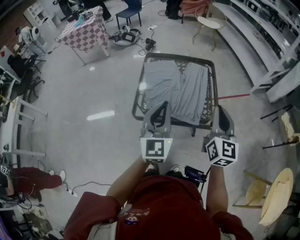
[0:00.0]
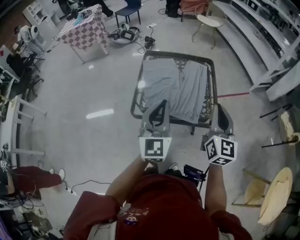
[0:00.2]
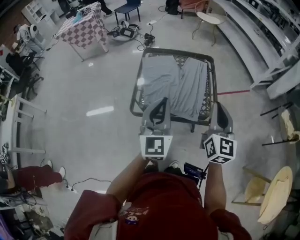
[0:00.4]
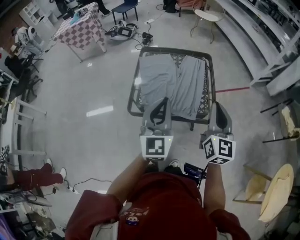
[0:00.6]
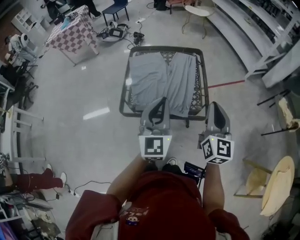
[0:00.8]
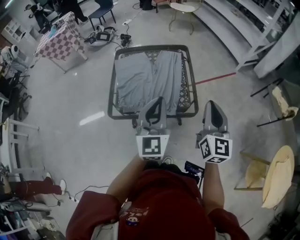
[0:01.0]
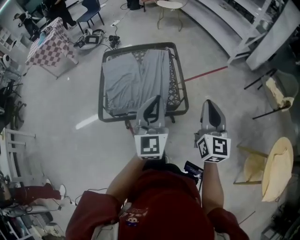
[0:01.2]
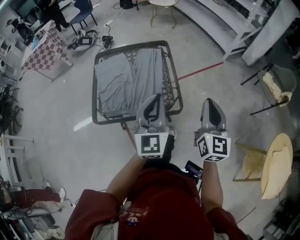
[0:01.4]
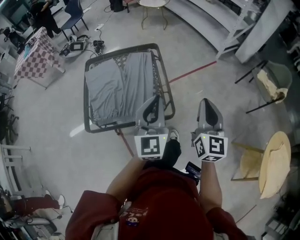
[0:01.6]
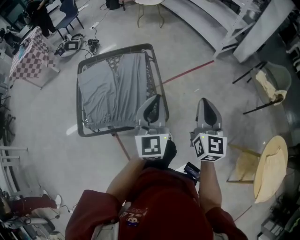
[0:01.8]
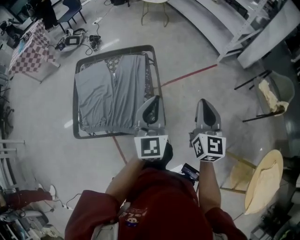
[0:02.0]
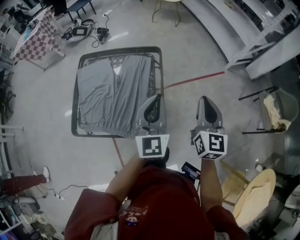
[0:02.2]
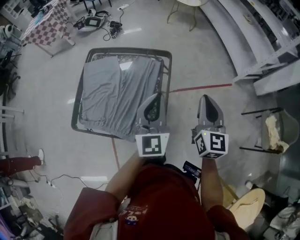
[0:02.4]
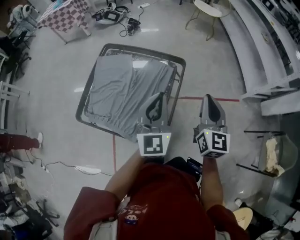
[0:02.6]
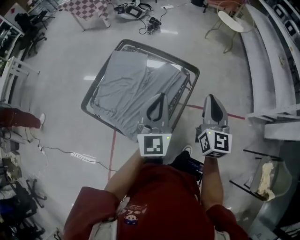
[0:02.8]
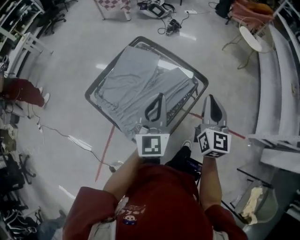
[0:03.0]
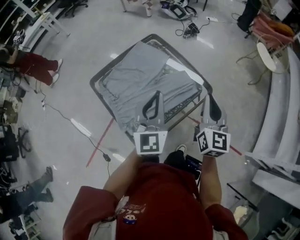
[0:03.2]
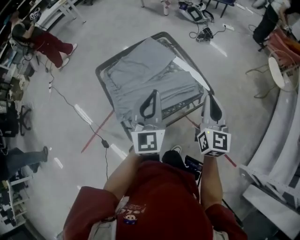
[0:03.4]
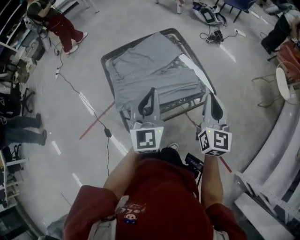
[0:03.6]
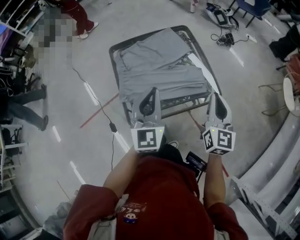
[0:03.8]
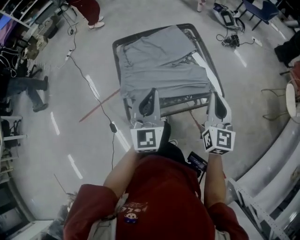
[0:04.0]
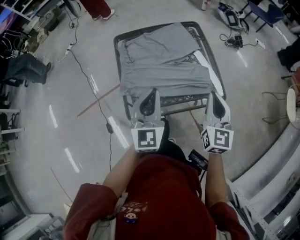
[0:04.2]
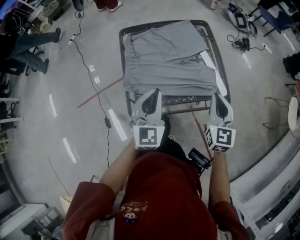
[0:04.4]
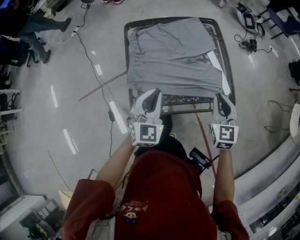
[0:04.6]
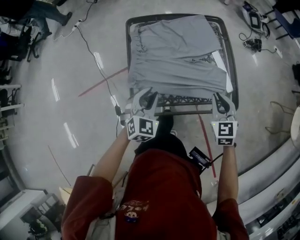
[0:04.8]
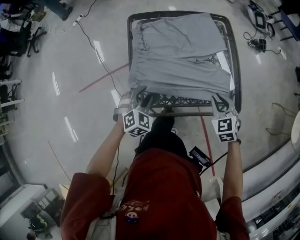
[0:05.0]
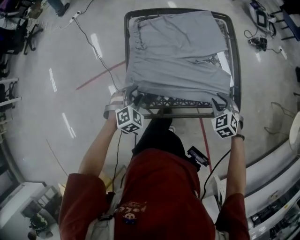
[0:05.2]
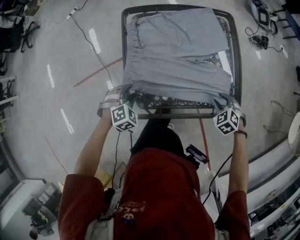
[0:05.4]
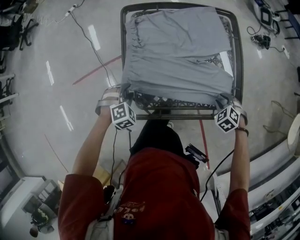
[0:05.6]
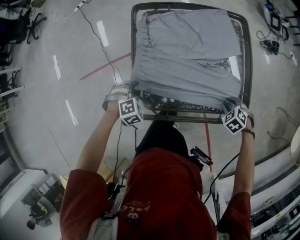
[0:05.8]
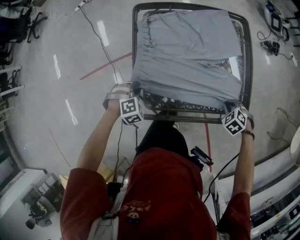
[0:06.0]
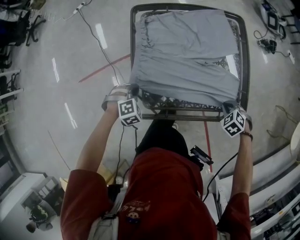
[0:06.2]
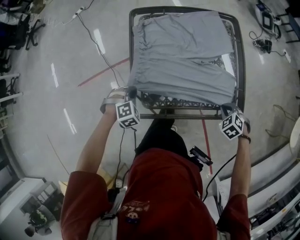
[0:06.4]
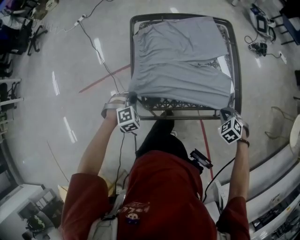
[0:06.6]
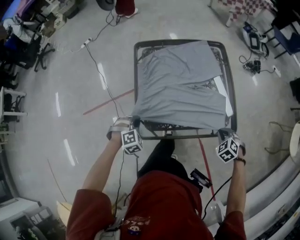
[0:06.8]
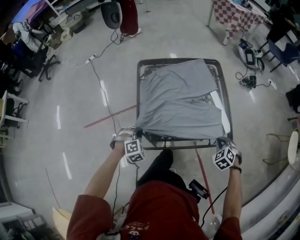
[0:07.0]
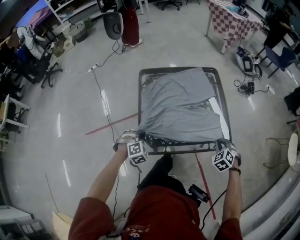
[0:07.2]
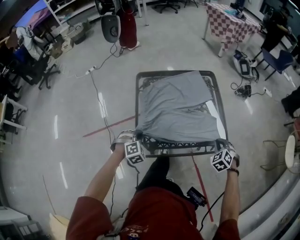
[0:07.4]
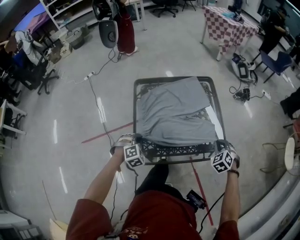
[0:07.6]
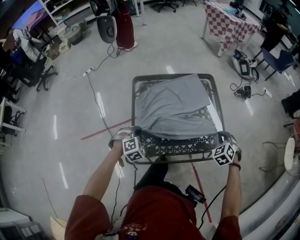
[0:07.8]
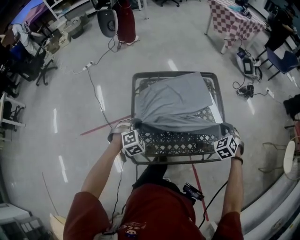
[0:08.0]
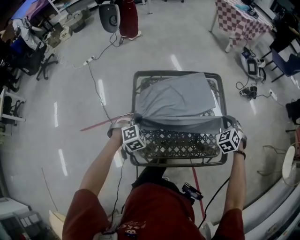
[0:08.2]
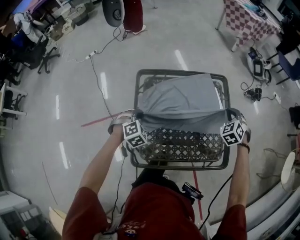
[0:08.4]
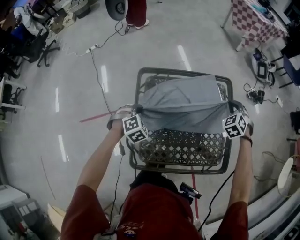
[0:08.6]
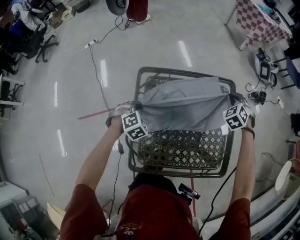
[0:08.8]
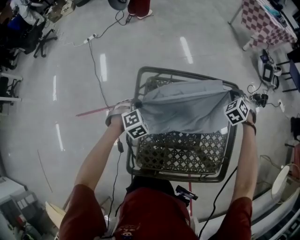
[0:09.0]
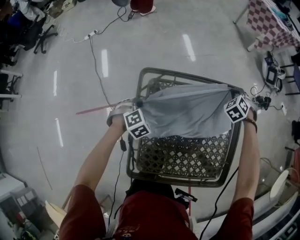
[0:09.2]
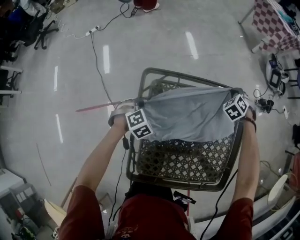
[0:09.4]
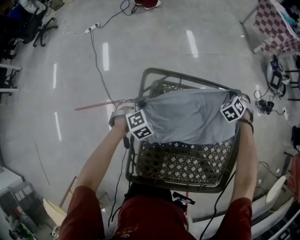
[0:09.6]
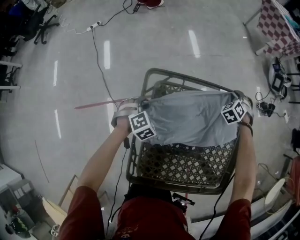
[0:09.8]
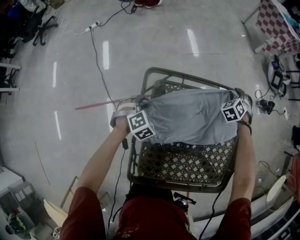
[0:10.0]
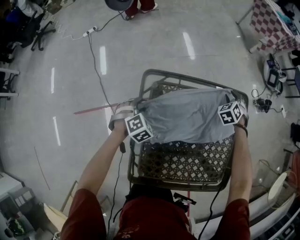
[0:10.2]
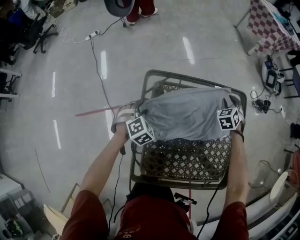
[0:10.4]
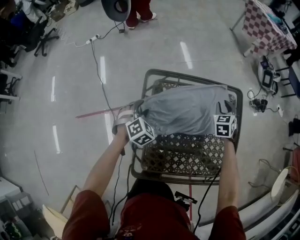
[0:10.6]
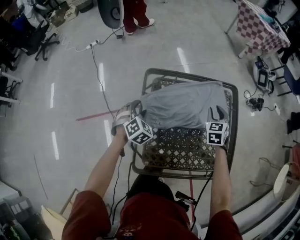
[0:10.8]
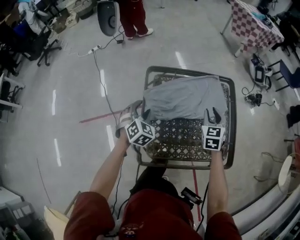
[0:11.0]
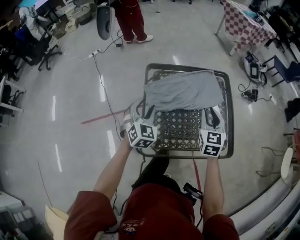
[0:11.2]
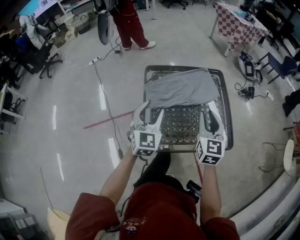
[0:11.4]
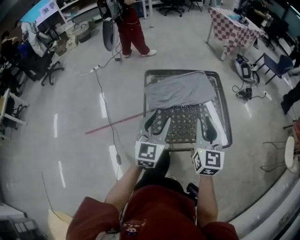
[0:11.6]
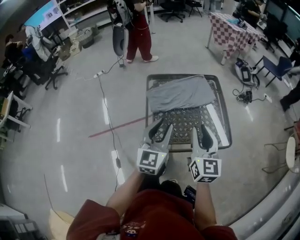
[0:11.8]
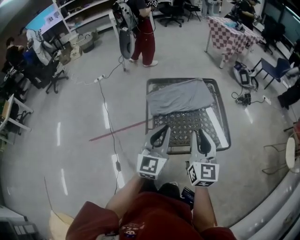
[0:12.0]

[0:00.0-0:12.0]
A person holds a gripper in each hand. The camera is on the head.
0:00.0 to 0:01.6: The two grippers go about 25 cm to the right.
0:01.6 to 0:03.0: The left gripper changes place by about 25 cm, and swivels some 50 degrees. The right gripper moves roughly 40 cm, and rotates some 50 degrees.
0:03.0 to 0:04.4: The grippers both shift downward by roughly 10 cm. The right gripper swivels some 50 degrees, while the left gripper rotates some 40 degrees.
0:04.4 to 0:06.0: The grippers both shift downward by approximately 30 cm. The right gripper tips its fingers downward by about 60 degrees, and opens, then closes again, while the left gripper angles its fingers downward, by some 60 degrees.
0:06.0 to 0:07.6: Both grippers travel together upward, approximately 10 cm. The right gripper rotates some 30 degrees.
0:07.6 to 0:09.0: The right gripper goes roughly 40 cm forward, while the left gripper moves forward, some 25 cm.
0:09.0 to 0:10.4: The right gripper moves downward, about 5 cm, and opens up. The left gripper opens up.
0:10.4 to 0:12.0: The grippers both shift backward and upward by about 60 cm. The left gripper tilts its fingers approximately 60 degrees upward, and closes up; the right gripper tilts its fingers approximately 50 degrees upward.

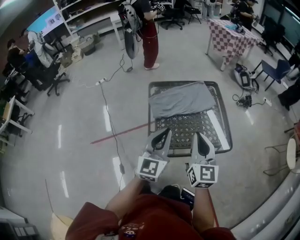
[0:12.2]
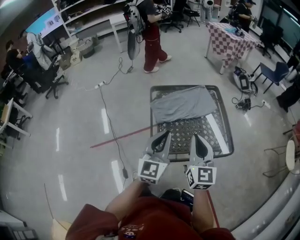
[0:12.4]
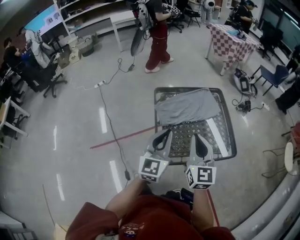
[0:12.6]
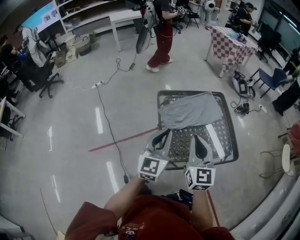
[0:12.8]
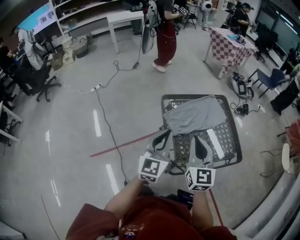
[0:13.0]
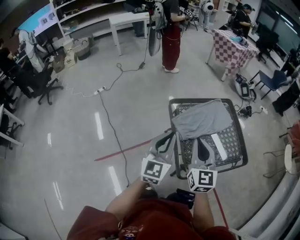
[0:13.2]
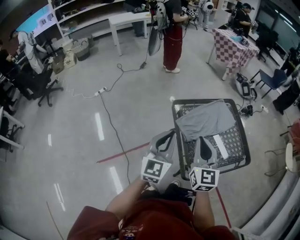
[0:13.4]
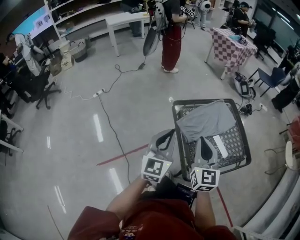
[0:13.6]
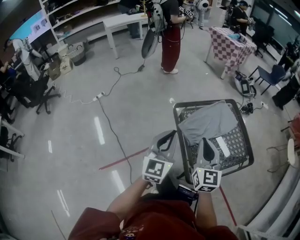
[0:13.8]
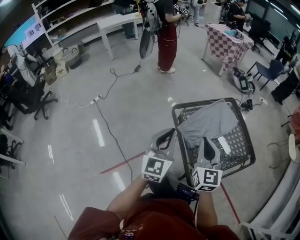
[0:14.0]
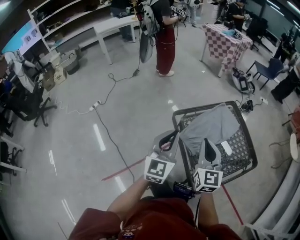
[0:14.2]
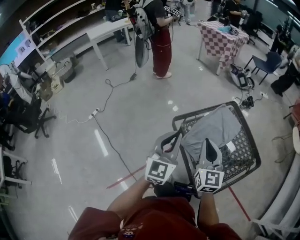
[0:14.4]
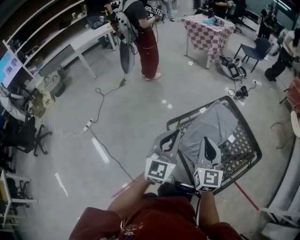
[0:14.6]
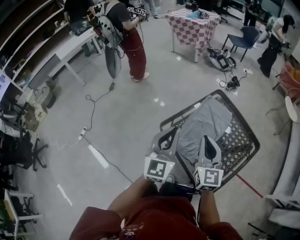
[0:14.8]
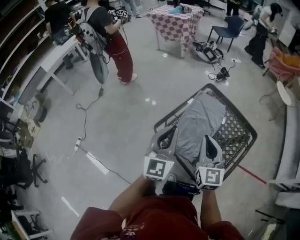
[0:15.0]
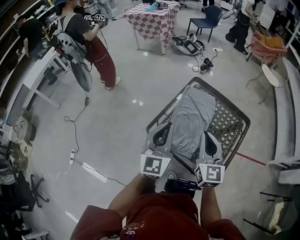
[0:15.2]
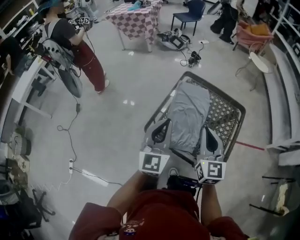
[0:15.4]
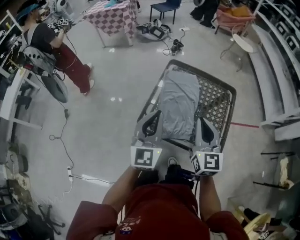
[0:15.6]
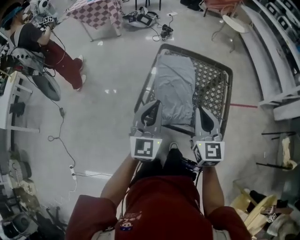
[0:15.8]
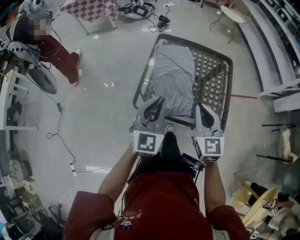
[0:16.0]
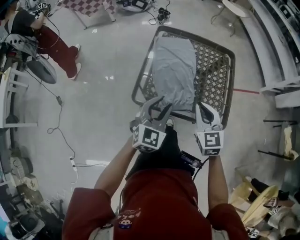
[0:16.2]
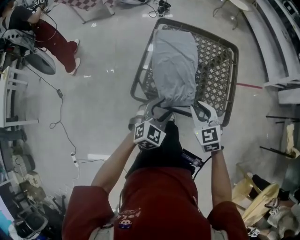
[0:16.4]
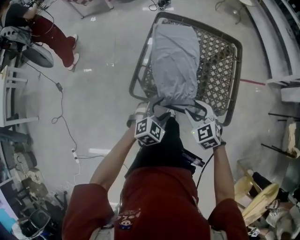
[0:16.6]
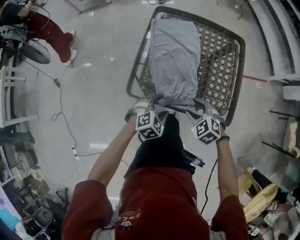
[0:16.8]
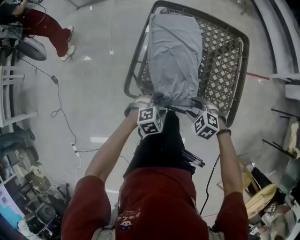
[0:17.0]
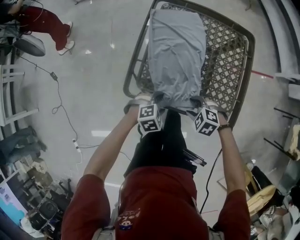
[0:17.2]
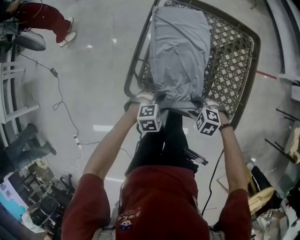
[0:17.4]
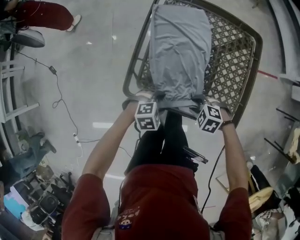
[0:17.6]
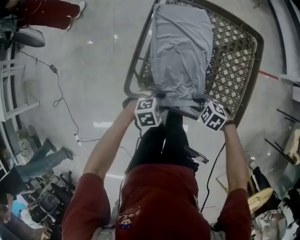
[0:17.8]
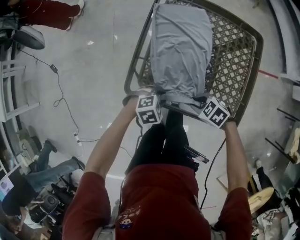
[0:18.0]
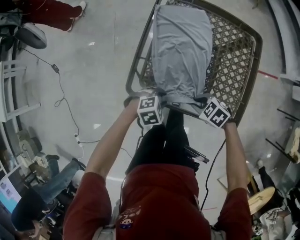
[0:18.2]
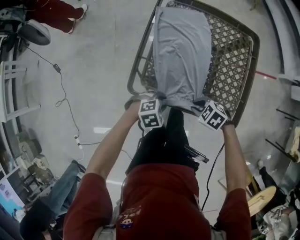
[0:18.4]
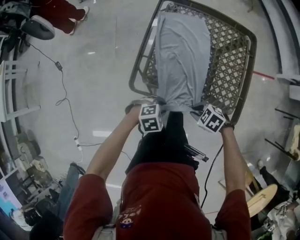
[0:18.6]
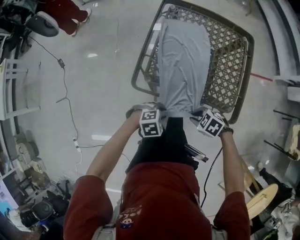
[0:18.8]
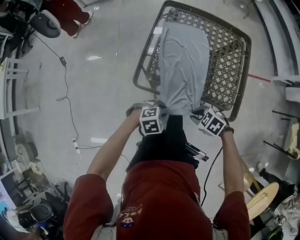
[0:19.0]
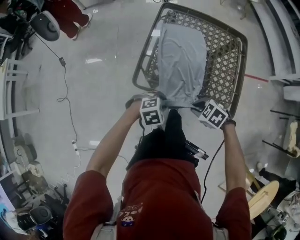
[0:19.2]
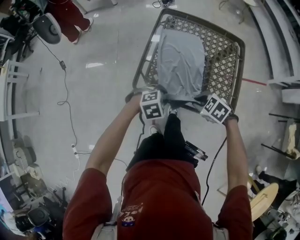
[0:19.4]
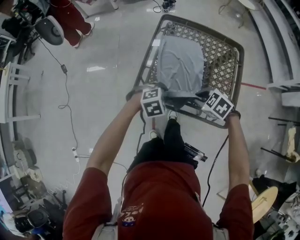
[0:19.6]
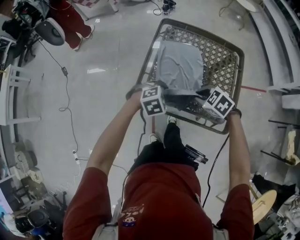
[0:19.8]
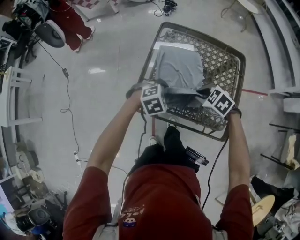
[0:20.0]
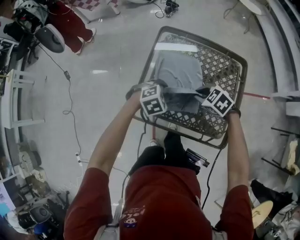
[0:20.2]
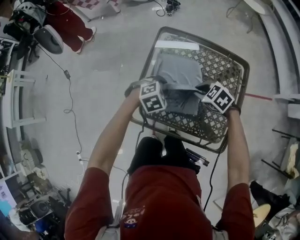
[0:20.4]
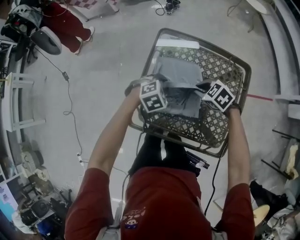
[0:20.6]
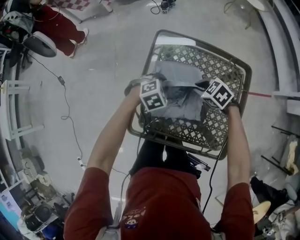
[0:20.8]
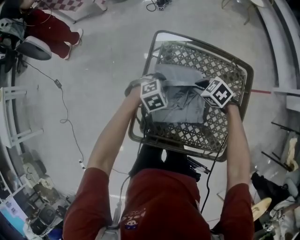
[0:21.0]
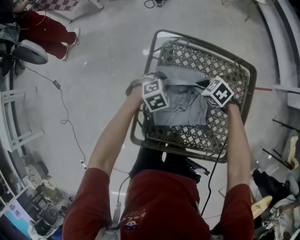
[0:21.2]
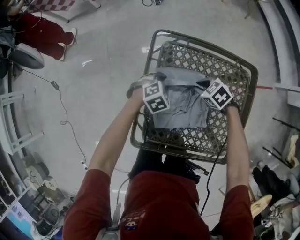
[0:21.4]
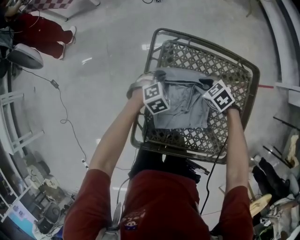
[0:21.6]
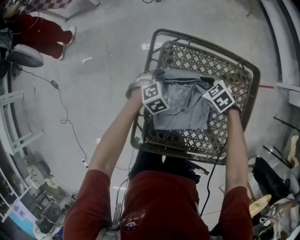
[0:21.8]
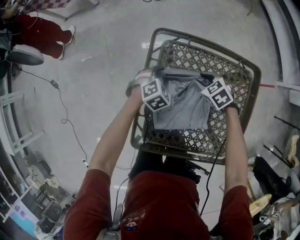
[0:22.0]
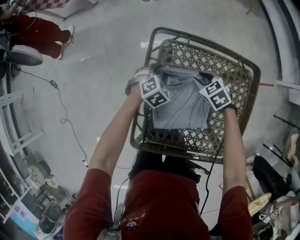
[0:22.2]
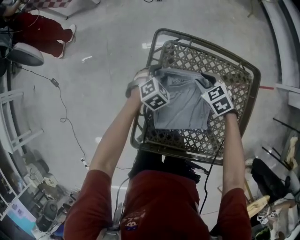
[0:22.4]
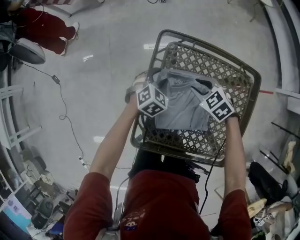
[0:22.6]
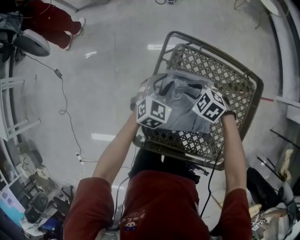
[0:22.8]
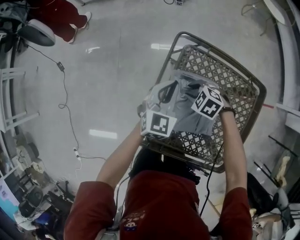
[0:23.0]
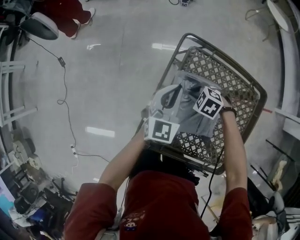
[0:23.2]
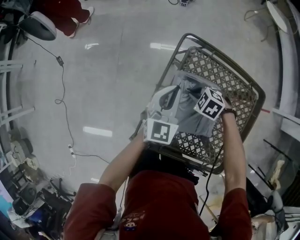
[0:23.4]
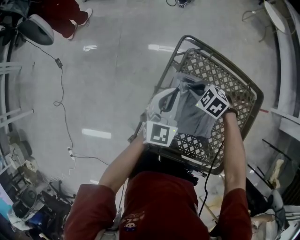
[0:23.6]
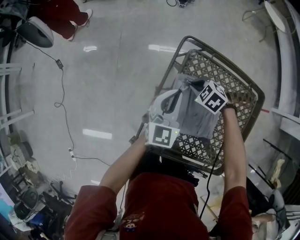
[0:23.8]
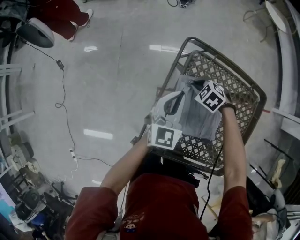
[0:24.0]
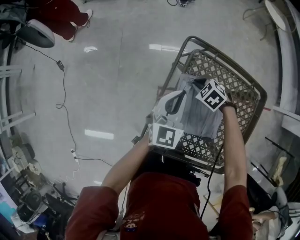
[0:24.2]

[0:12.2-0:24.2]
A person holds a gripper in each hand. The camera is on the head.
0:12.2 to 0:13.8: The left gripper heads to the left and forward, covering approximately 35 cm; the right gripper travels to the left by roughly 30 cm.
0:13.8 to 0:15.2: The left gripper ends up about 25 cm from where it was, and rotates some 30 degrees; the right gripper ends up some 20 cm from where it was, and changes its angle by about 40 degrees.
0:15.2 to 0:16.6: The two grippers go about 25 cm downward. The right gripper tilts its fingers roughly 40 degrees downward, and opens up; the left gripper tilts its fingers approximately 50 degrees downward, and opens up.
0:16.6 to 0:18.2: The grippers both shift downward by approximately 15 cm. The left gripper turns by approximately 30 degrees, and closes its fingers. Meanwhile the right gripper swivels roughly 40 degrees, and closes up.
0:18.2 to 0:19.8: Both grippers move upward, some 10 cm.
0:19.8 to 0:21.2: The left gripper changes place by roughly 25 cm. Meanwhile the right gripper changes place by approximately 25 cm.
0:21.2 to 0:22.6: The left gripper moves roughly 5 cm, and turns by roughly 20 degrees, while the right gripper ends up about 5 cm from where it was.
0:22.6 to 0:24.2: The right gripper moves roughly 10 cm, and closes up; the left gripper travels upward by approximately 15 cm, tilts its fingers some 30 degrees upward, and closes its fingers.
